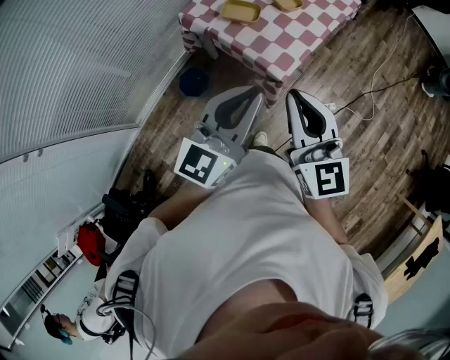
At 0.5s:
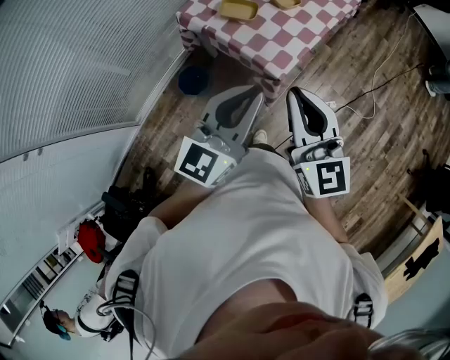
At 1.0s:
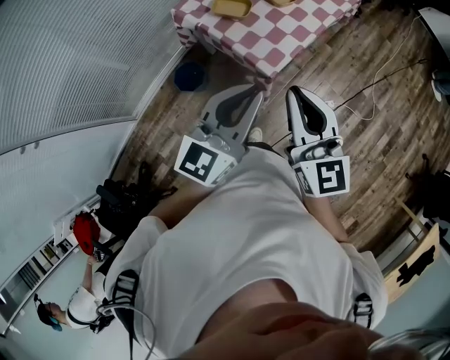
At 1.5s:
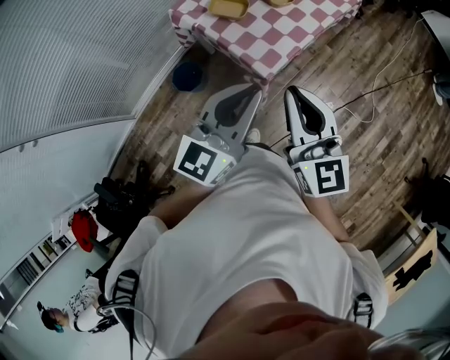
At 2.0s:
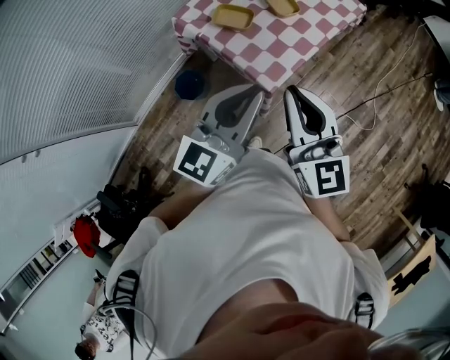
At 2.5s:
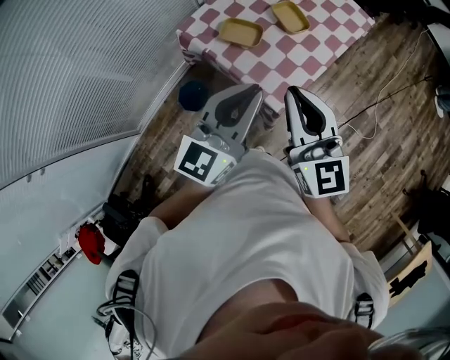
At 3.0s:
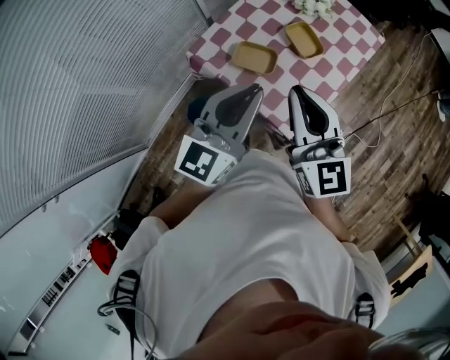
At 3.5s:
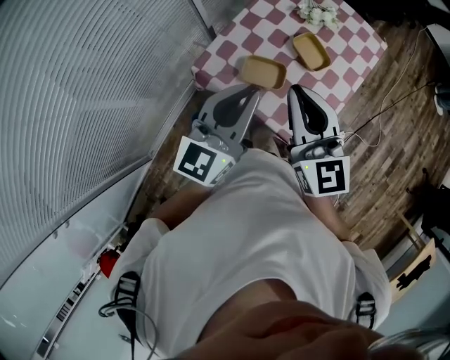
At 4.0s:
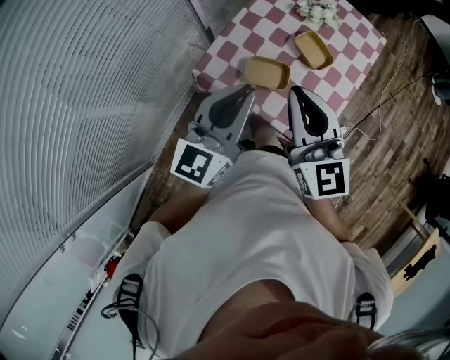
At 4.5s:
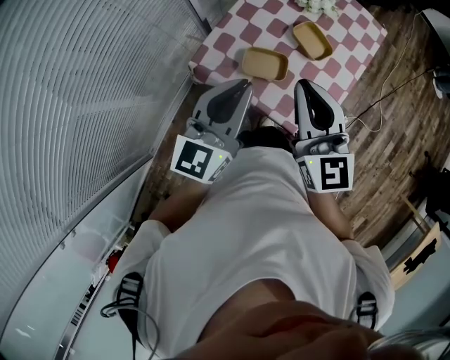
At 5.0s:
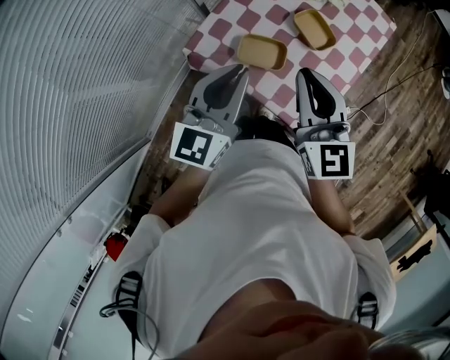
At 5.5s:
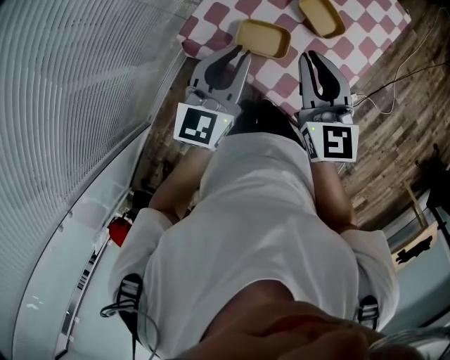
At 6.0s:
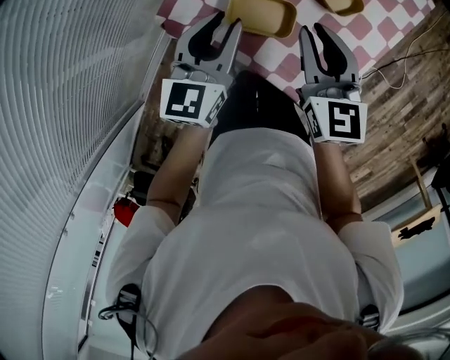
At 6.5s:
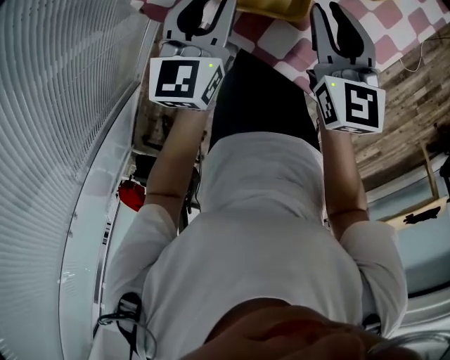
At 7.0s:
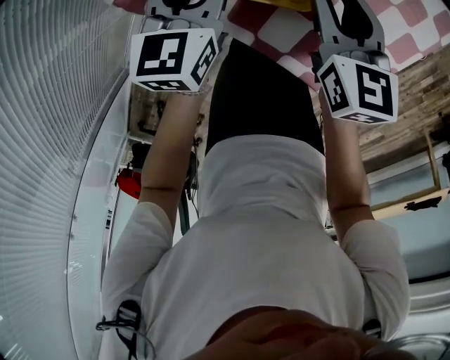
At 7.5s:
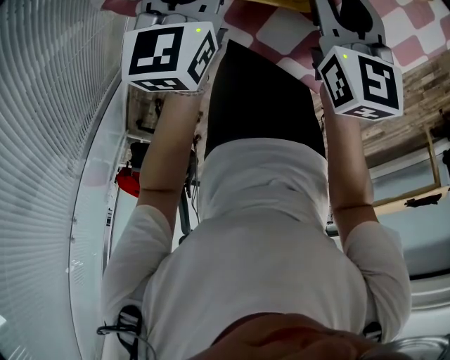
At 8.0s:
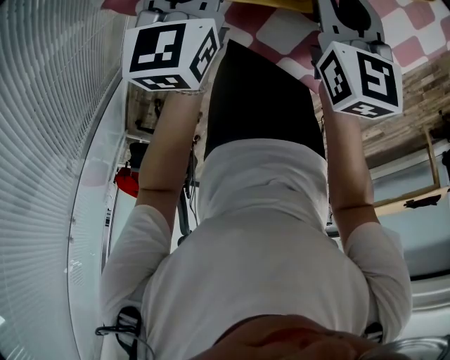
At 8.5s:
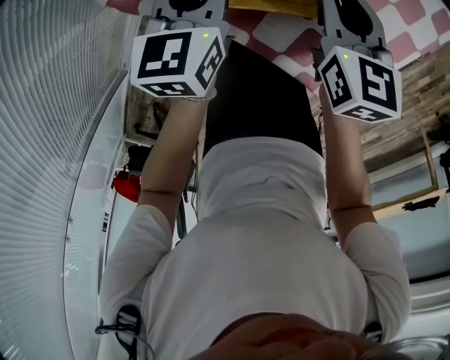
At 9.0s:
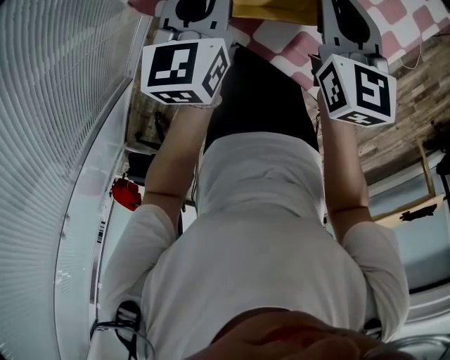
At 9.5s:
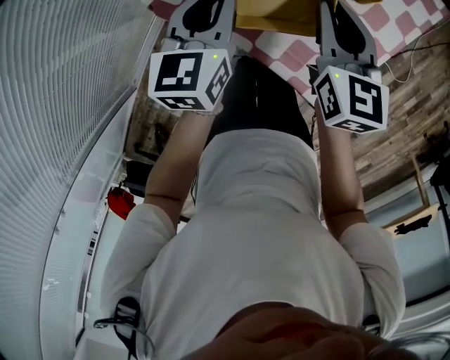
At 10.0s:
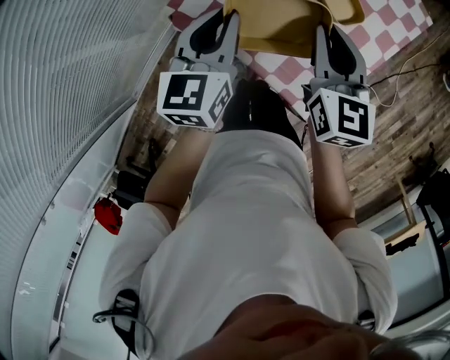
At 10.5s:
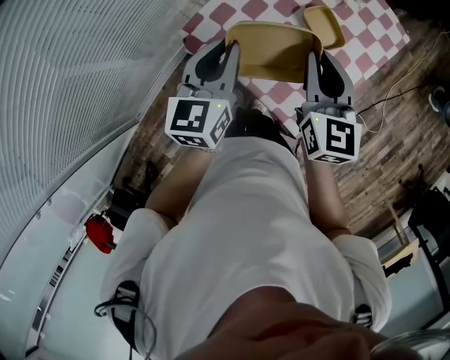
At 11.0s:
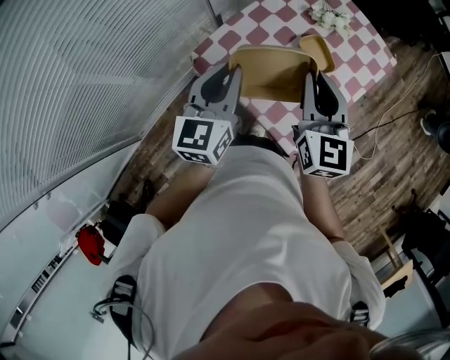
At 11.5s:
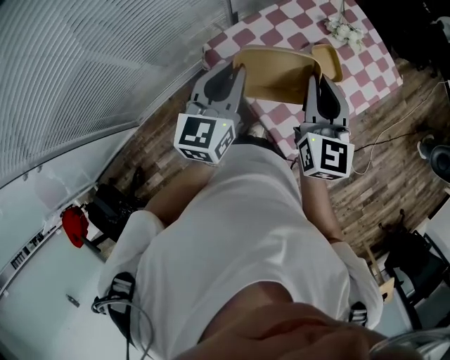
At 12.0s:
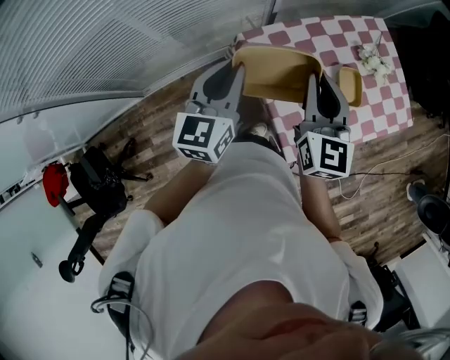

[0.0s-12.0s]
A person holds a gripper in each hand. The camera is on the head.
0.0s to 2.0s: Both grippers move forward and to the right, approximately 10 cm.
2.0s to 4.0s: Both grippers move forward and to the left, roughly 30 cm.
4.0s to 6.0s: Both grippers move downward and forward, about 25 cm. The right gripper swivels some 20 degrees. Meanwhile the left gripper rotates some 20 degrees.
6.0s to 8.0s: Both grippers move downward, approximately 20 cm. The right gripper turns by approximately 20 degrees.
8.0s to 10.0s: Both grippers travel together upward, about 25 cm. The right gripper rotates about 20 degrees.
10.0s to 12.0s: The left gripper shifts by some 20 cm, and turns by some 30 degrees; the right gripper is displaced upward by approximately 15 cm, and turns by approximately 30 degrees.

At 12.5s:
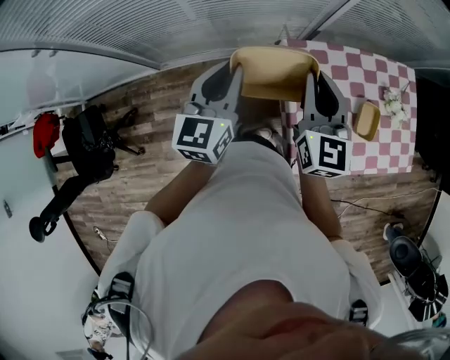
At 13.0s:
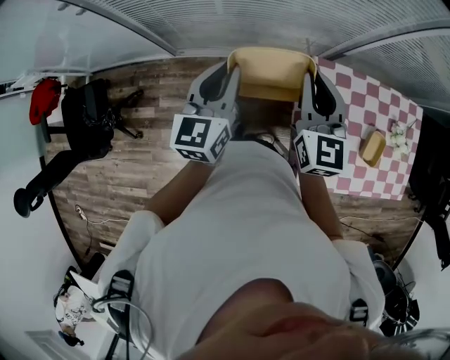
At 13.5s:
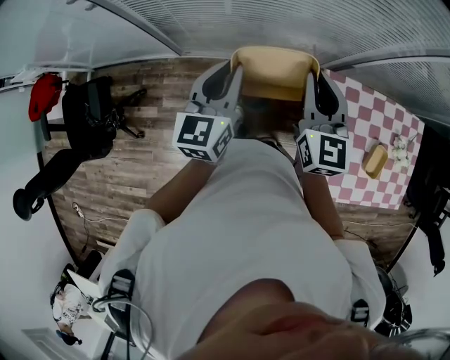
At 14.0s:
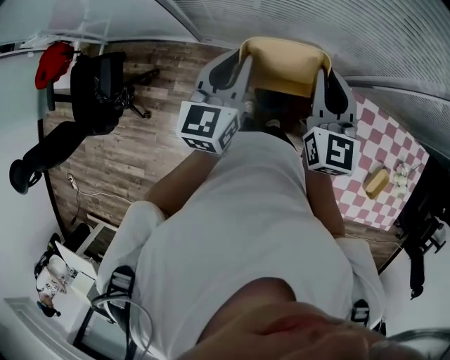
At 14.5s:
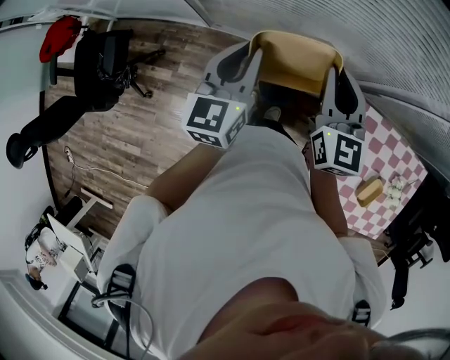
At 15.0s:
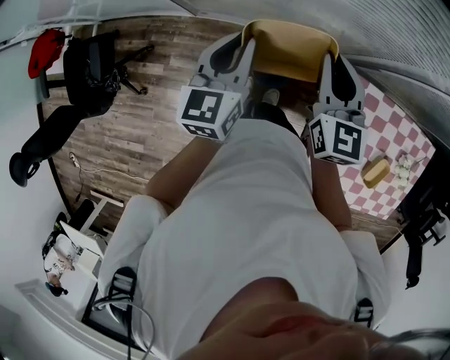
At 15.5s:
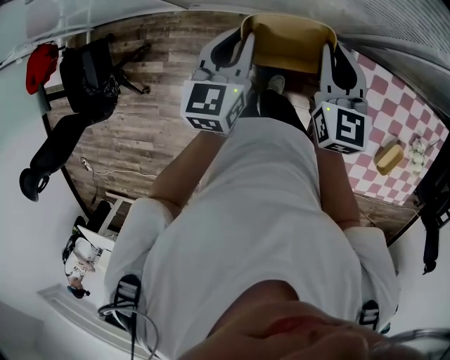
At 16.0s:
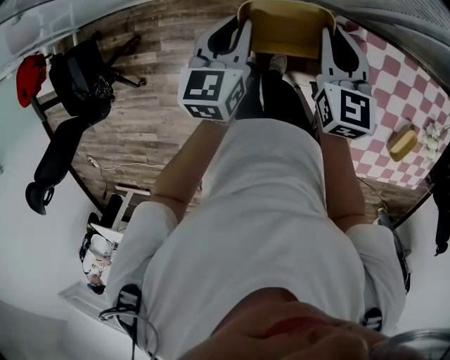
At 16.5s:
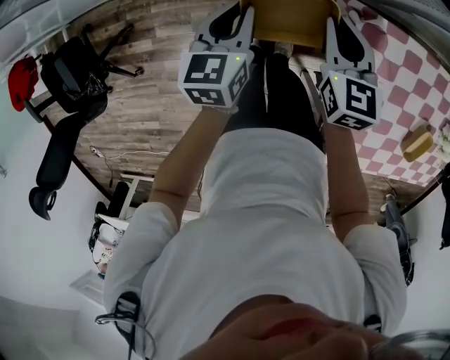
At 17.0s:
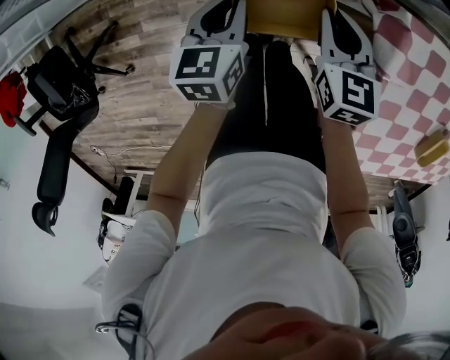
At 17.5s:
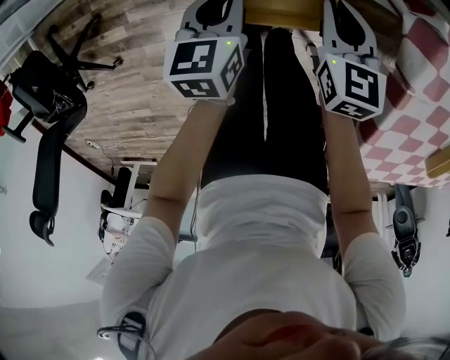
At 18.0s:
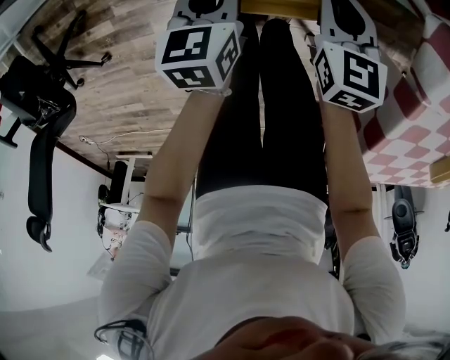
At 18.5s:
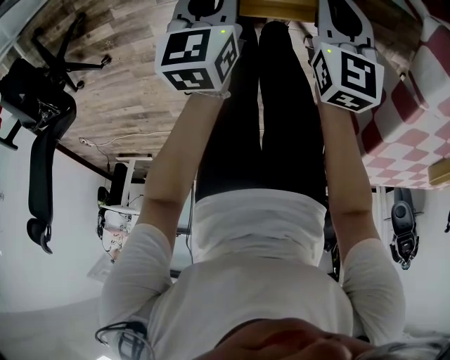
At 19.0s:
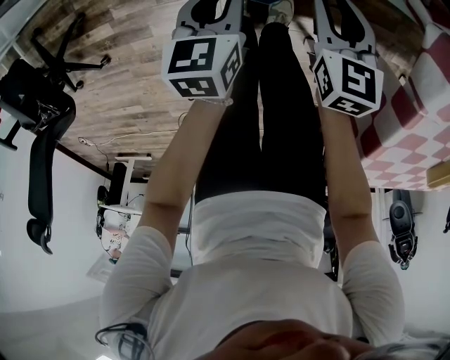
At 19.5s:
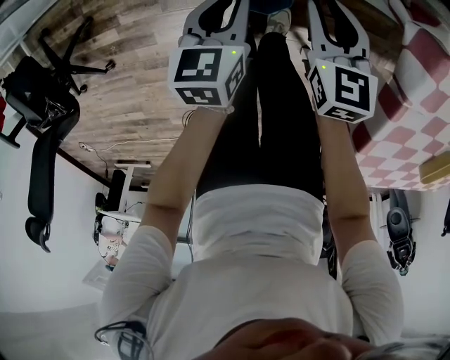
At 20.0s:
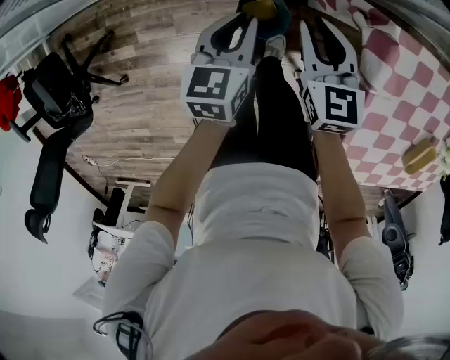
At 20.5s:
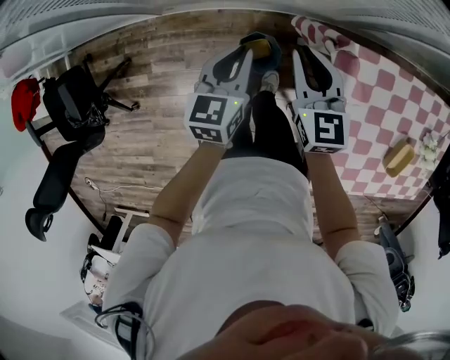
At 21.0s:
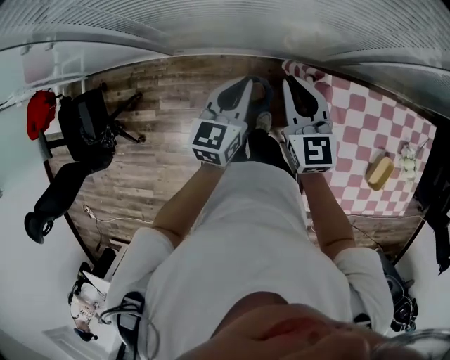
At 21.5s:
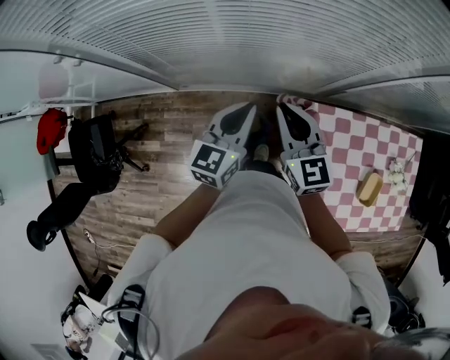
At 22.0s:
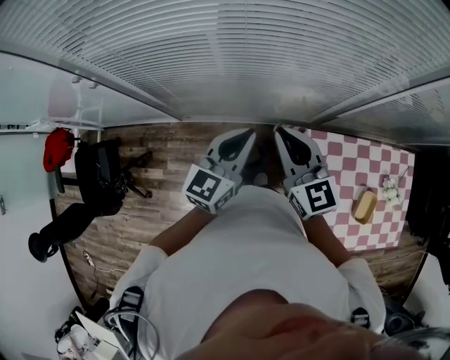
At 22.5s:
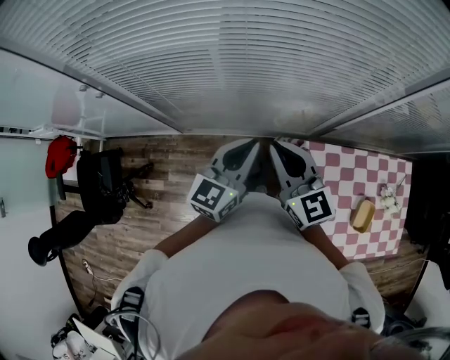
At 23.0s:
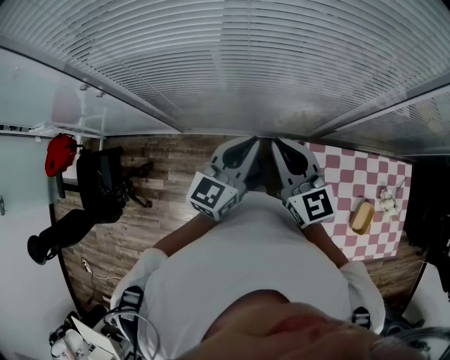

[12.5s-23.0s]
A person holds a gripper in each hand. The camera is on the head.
12.5s to 14.5s: The left gripper travels to the left by some 25 cm, and turns by about 20 degrees. The right gripper travels to the left and forward by approximately 30 cm, and changes its angle by roughly 20 degrees.
14.5s to 16.5s: The two grippers go roughly 25 cm downward. The left gripper turns by some 30 degrees, while the right gripper rotates approximately 30 degrees.
16.5s to 19.0s: Both grippers move downward, approximately 30 cm. The right gripper opens its fingers.
19.0s to 21.0s: The grippers both shift upward by approximately 40 cm. The right gripper turns by roughly 30 degrees, and closes its fingers; the left gripper turns by some 30 degrees.
21.0s to 23.0s: Both grippers travel together upward, approximately 20 cm. The left gripper rotates about 20 degrees.

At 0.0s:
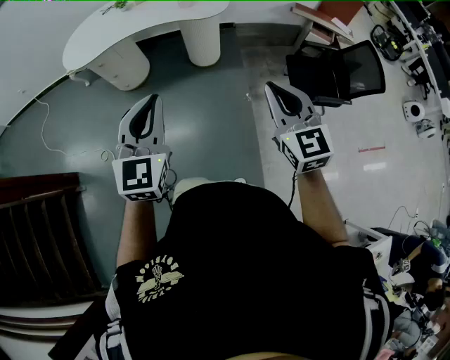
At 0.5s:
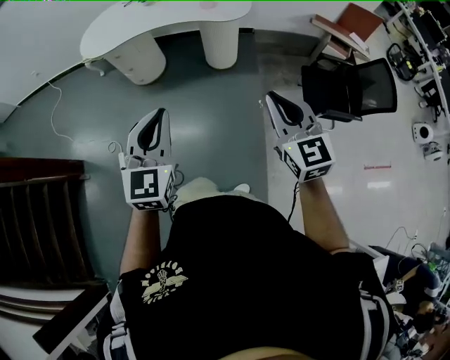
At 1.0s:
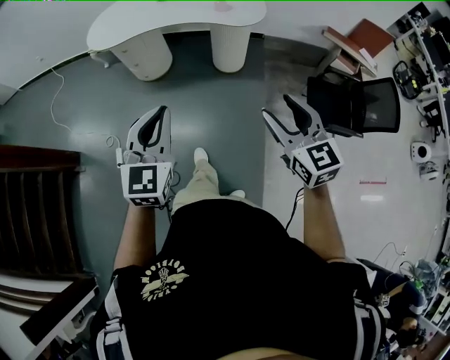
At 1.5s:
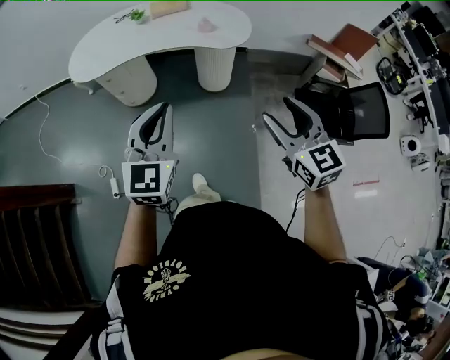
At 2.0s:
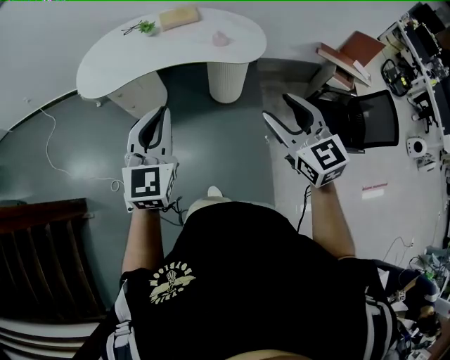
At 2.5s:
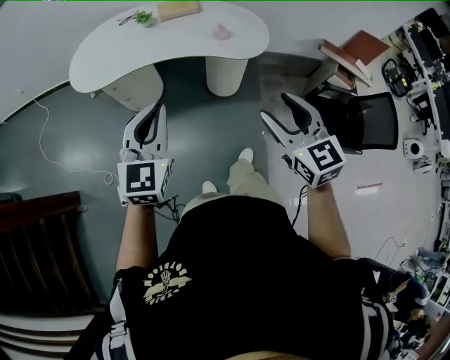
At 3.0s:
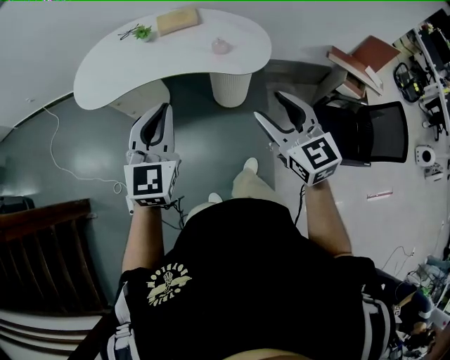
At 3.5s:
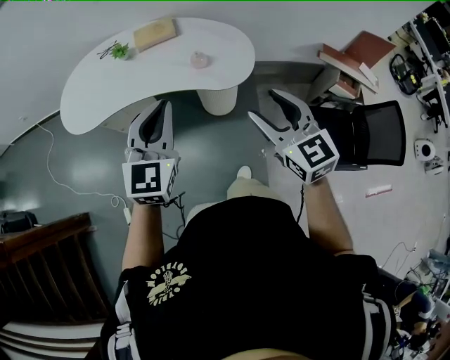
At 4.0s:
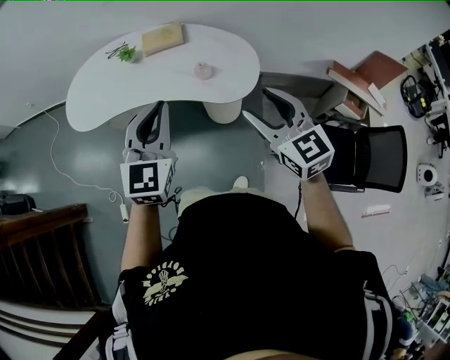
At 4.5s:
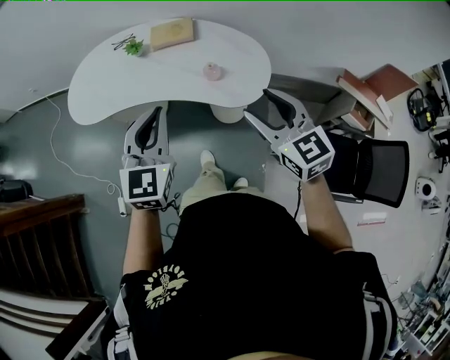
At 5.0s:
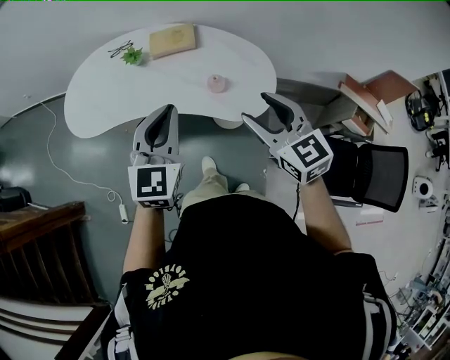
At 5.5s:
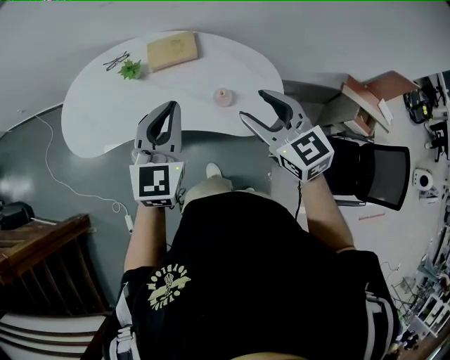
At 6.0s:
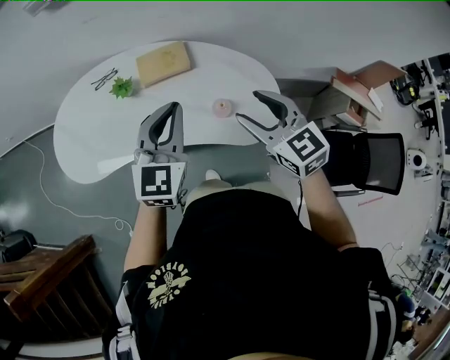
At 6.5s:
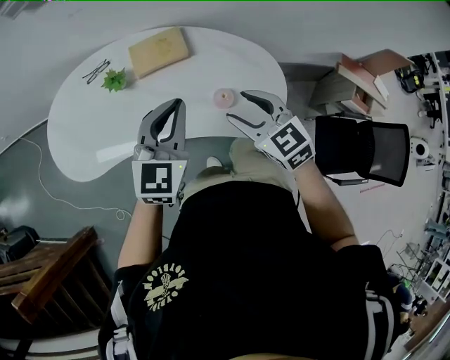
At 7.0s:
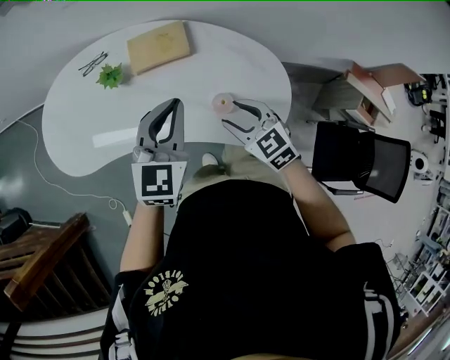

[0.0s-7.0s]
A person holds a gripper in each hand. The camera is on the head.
0.0s to 2.0s: The right gripper shifts approximately 25 cm forward and to the left, and opens up, while the left gripper heads forward, covering roughly 25 cm.
2.0s to 3.5s: Both grippers travel together forward and to the right, some 25 cm.
3.5s to 5.0s: The grippers both shift forward by roughly 15 cm.
5.0s to 7.0s: The left gripper shifts some 25 cm forward and downward; the right gripper moves downward and forward, approximately 25 cm.
